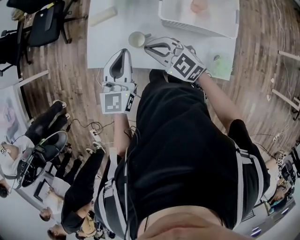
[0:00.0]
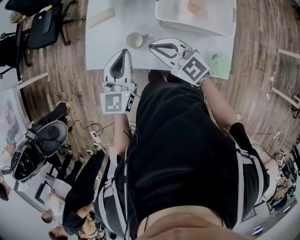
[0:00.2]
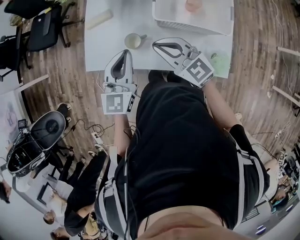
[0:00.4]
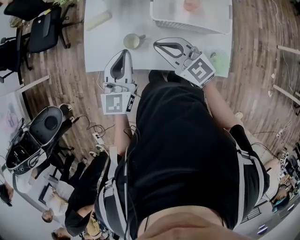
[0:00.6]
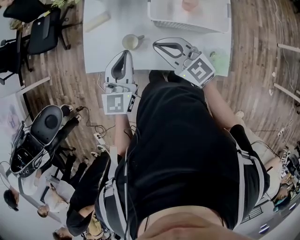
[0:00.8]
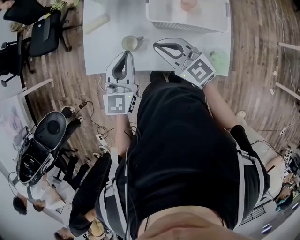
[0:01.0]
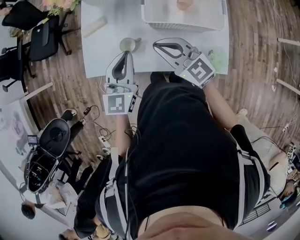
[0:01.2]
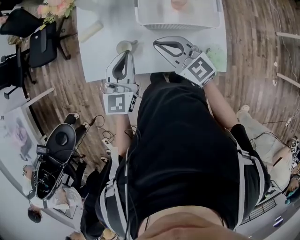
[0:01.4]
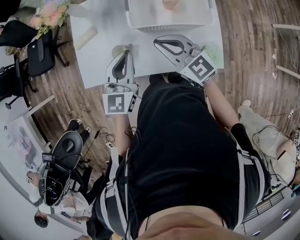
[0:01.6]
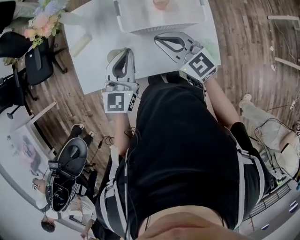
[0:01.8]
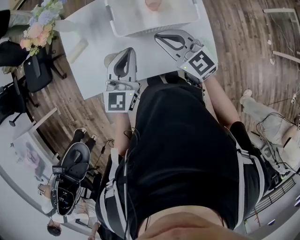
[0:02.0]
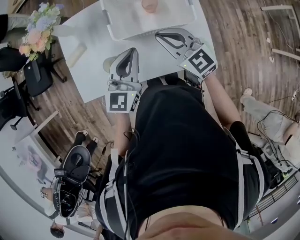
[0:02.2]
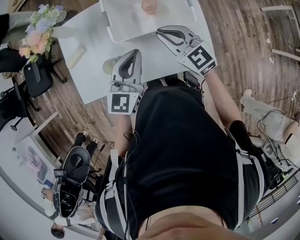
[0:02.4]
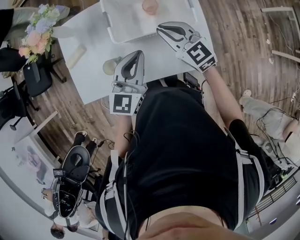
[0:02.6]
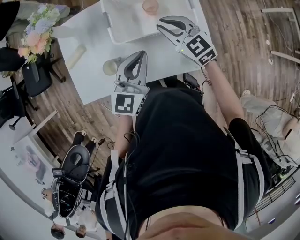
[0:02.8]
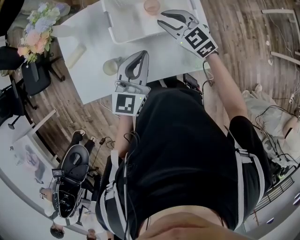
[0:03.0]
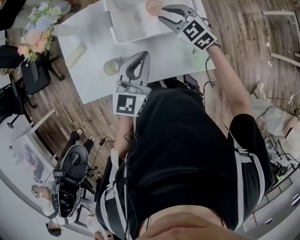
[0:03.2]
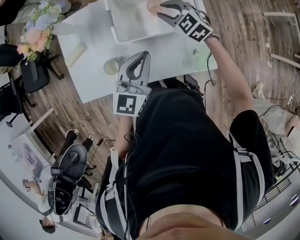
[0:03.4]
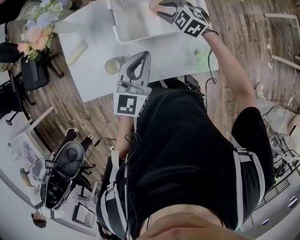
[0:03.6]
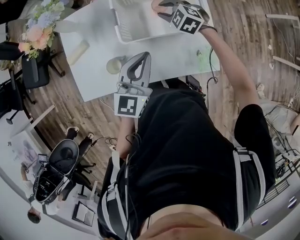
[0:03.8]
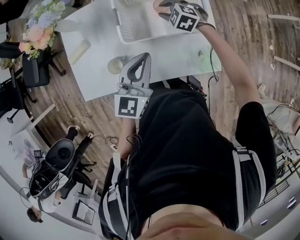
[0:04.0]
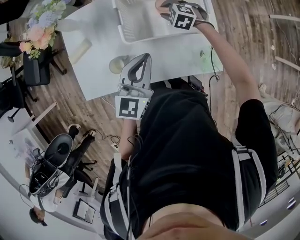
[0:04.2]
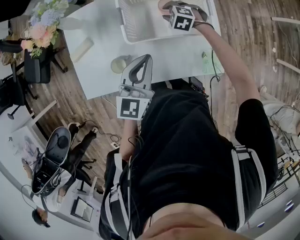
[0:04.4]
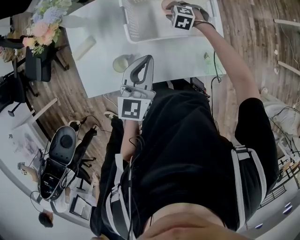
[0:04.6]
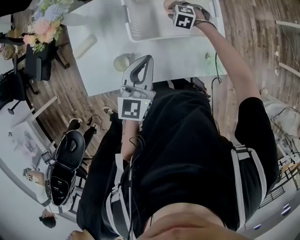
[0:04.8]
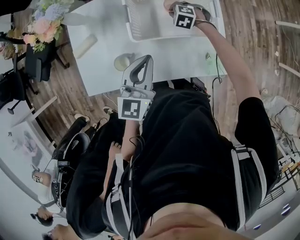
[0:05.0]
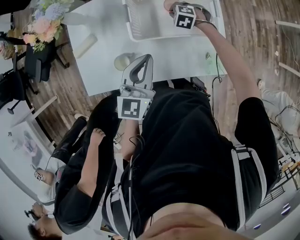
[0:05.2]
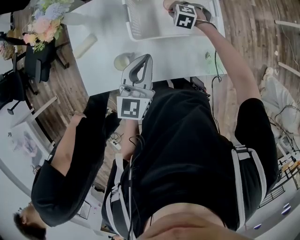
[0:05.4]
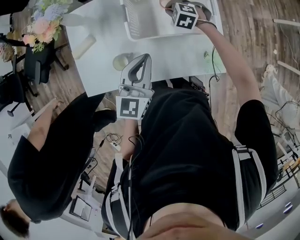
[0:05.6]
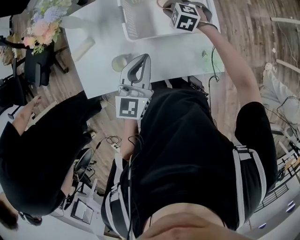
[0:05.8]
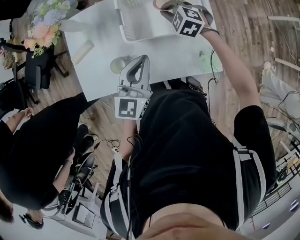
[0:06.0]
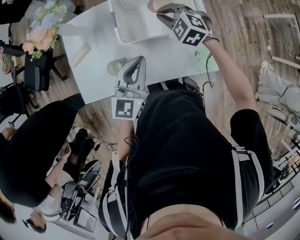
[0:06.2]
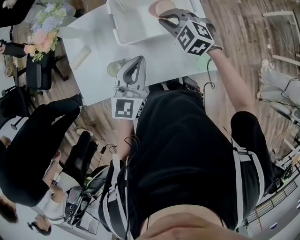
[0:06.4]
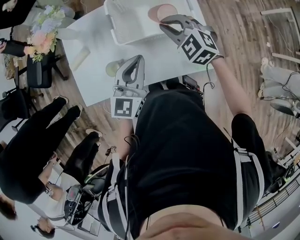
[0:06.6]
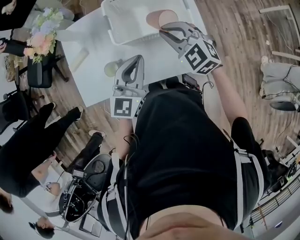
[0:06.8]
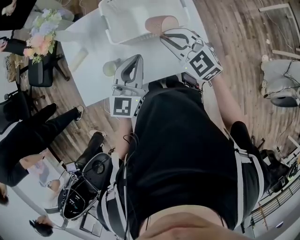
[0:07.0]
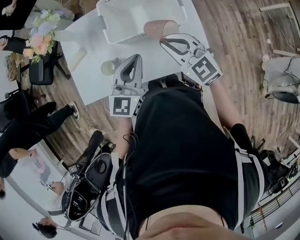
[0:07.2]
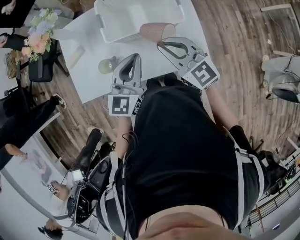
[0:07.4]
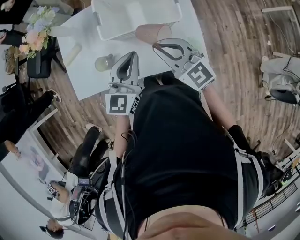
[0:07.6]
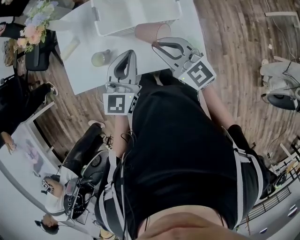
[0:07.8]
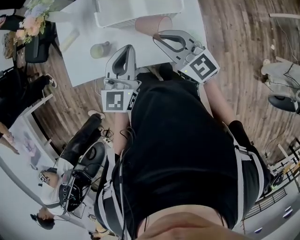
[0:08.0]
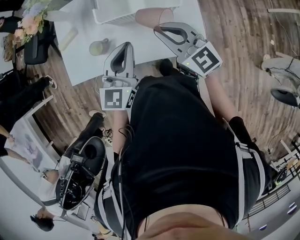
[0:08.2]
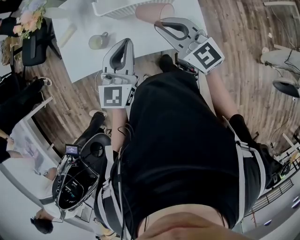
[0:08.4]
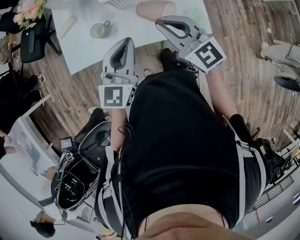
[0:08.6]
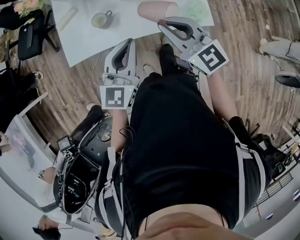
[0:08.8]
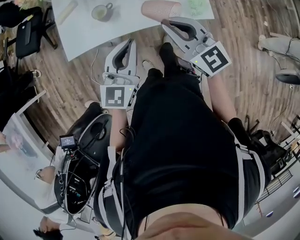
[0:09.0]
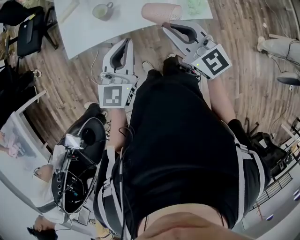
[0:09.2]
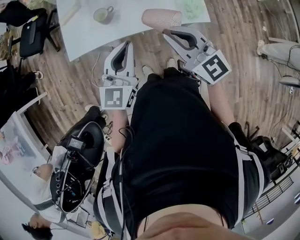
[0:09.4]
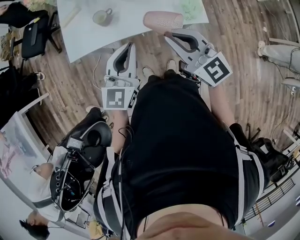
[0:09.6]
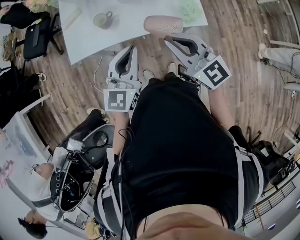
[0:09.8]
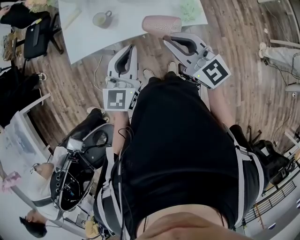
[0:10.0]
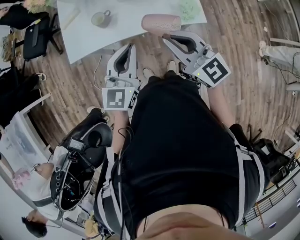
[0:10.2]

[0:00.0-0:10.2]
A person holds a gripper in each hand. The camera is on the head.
0:00.0 to 0:01.4: The grippers both shift to the right by roughly 10 cm. The right gripper swivels roughly 20 degrees.
0:01.4 to 0:03.0: The left gripper is displaced to the right by approximately 15 cm. The right gripper shifts roughly 20 cm to the right and forward, and swivels some 20 degrees.
0:03.0 to 0:04.4: The right gripper moves downward and forward, approximately 20 cm, and points its fingers approximately 30 degrees further downward.
0:04.4 to 0:05.8: The right gripper shifts approximately 5 cm upward, and closes its fingers.
0:05.8 to 0:07.2: The left gripper heads to the right and backward, covering approximately 10 cm, while the right gripper is displaced backward and upward by approximately 25 cm, and angles its fingers upward, by roughly 40 degrees.
0:07.2 to 0:08.8: The grippers both shift backward and to the left by about 20 cm.
0:08.8 to 0:10.2: The right gripper moves backward, about 10 cm, while the left gripper moves backward, some 5 cm.

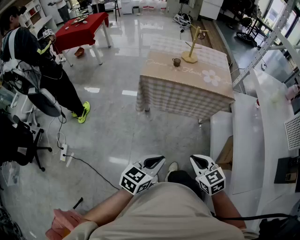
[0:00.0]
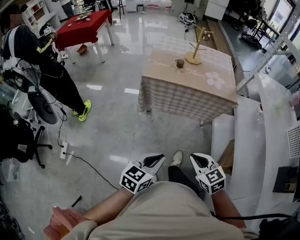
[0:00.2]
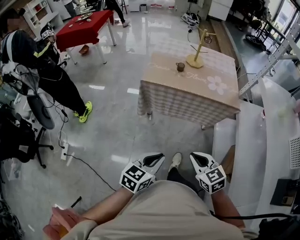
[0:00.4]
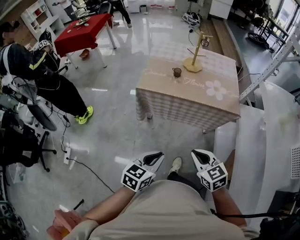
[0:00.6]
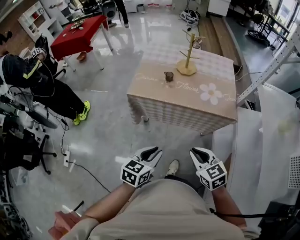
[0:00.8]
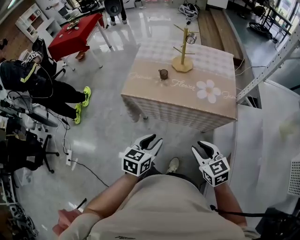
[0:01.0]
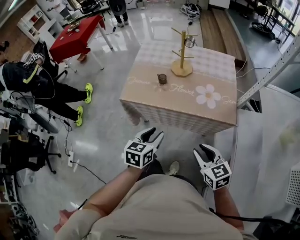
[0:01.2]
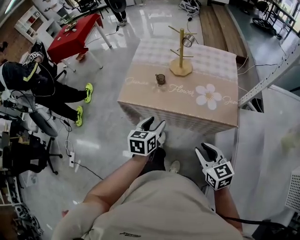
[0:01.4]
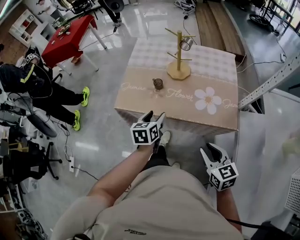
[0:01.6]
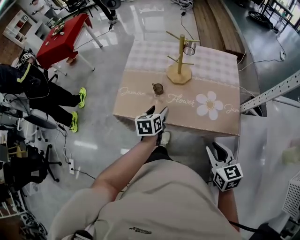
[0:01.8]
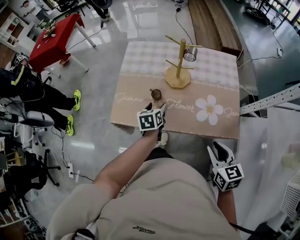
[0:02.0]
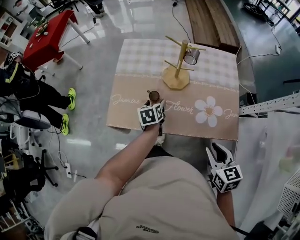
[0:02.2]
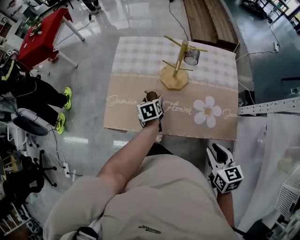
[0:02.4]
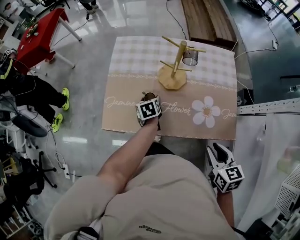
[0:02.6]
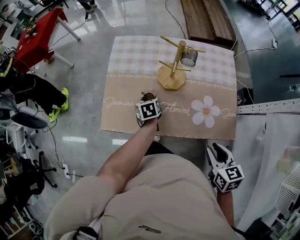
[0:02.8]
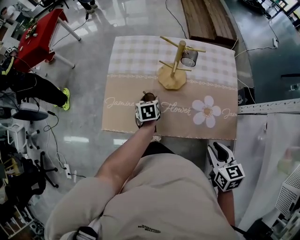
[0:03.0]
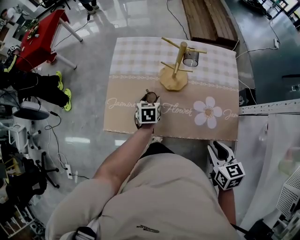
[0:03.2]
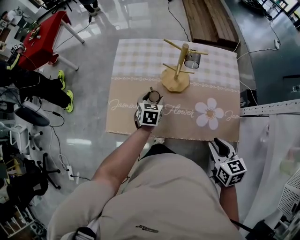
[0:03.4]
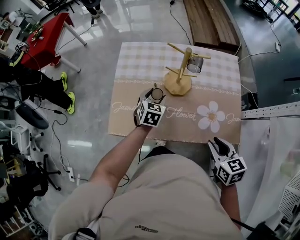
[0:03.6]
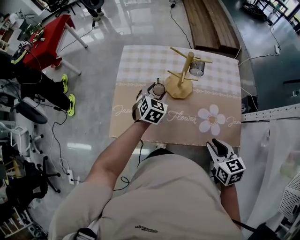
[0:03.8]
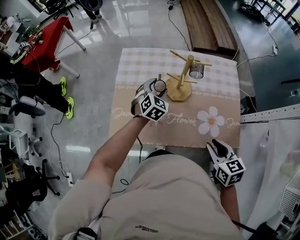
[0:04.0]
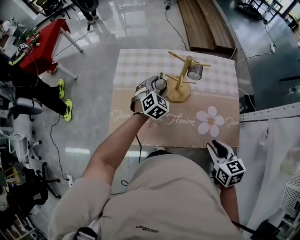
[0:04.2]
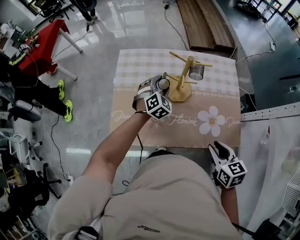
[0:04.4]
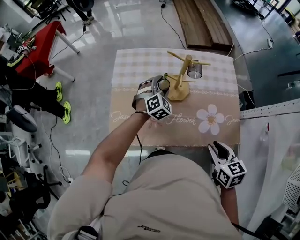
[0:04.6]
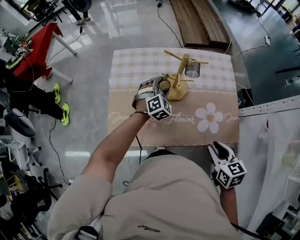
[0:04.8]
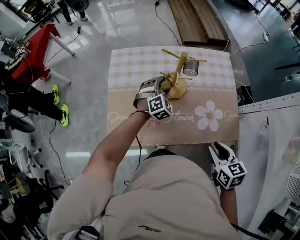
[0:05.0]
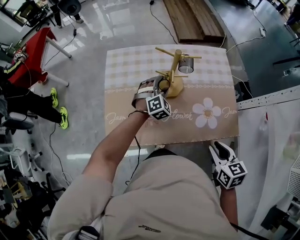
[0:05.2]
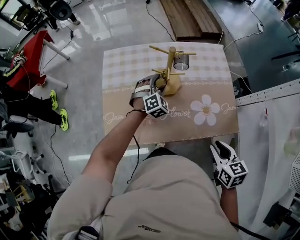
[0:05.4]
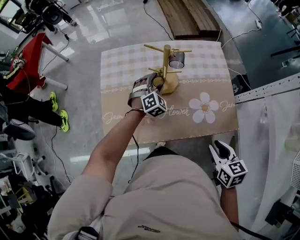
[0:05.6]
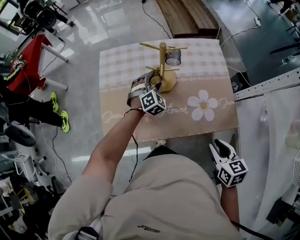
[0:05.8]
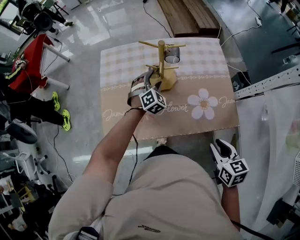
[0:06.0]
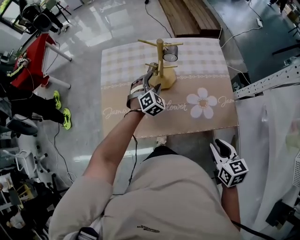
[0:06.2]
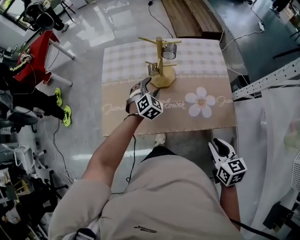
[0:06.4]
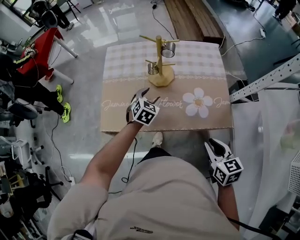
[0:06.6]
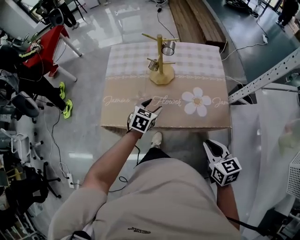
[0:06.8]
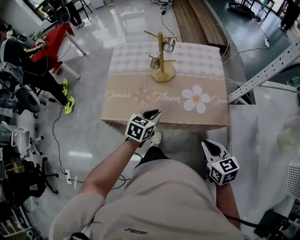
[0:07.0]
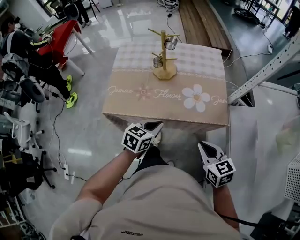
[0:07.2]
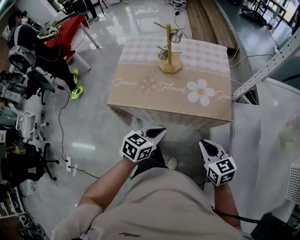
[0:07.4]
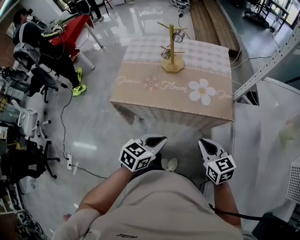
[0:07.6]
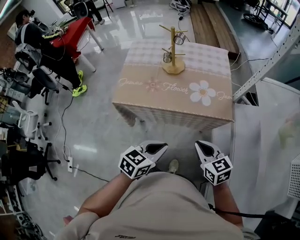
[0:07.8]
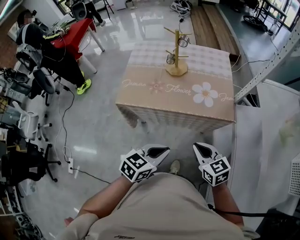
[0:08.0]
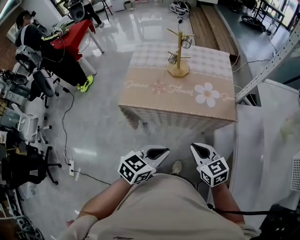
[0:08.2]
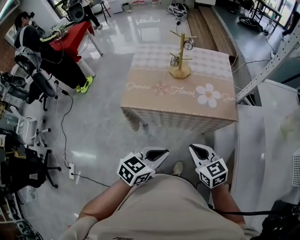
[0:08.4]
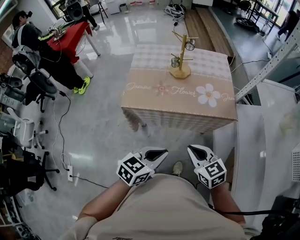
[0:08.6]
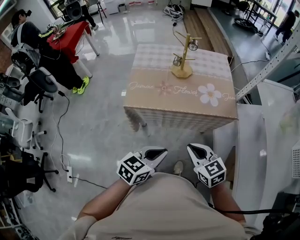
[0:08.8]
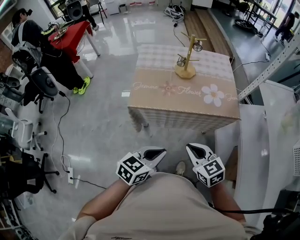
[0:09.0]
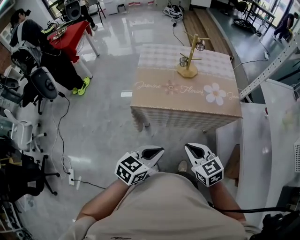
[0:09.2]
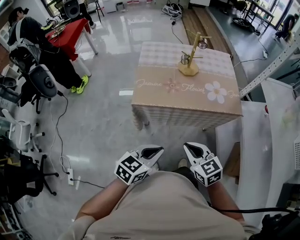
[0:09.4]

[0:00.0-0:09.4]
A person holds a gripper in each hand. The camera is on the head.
0:00.0 to 0:01.6: Both grippers are carried forward, some 50 cm. The left gripper rotates some 30 degrees, and opens, while the right gripper opens up.
0:01.6 to 0:03.2: The right gripper heads forward, covering about 15 cm. Meanwhile the left gripper goes about 25 cm forward and downward.
0:03.2 to 0:04.8: The left gripper moves forward, to the right and upward, about 15 cm, and rolls clockwise, seen from behind, by roughly 70 degrees.
0:04.8 to 0:06.2: The right gripper heads backward, covering roughly 5 cm.
0:06.2 to 0:07.8: The right gripper is displaced backward by approximately 15 cm, changes its angle by about 30 degrees, and closes up, while the left gripper heads backward, covering some 50 cm, rolls counterclockwise, seen from behind, by approximately 50 degrees, and closes.
0:07.8 to 0:09.4: Both grippers travel together to the left, roughly 20 cm.

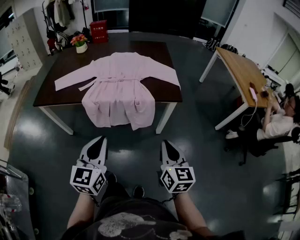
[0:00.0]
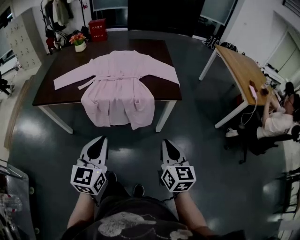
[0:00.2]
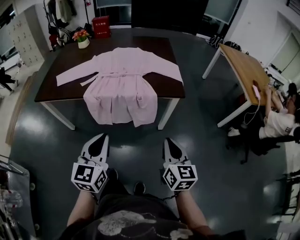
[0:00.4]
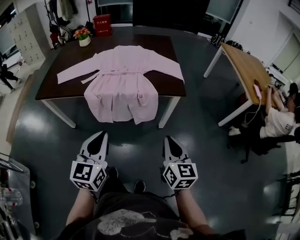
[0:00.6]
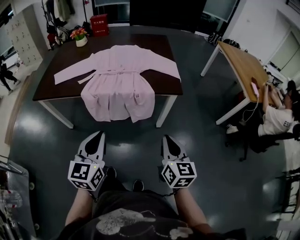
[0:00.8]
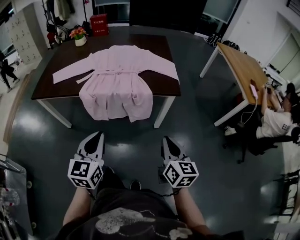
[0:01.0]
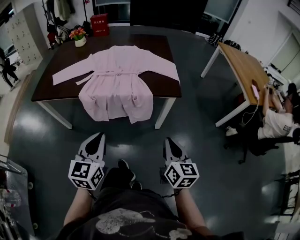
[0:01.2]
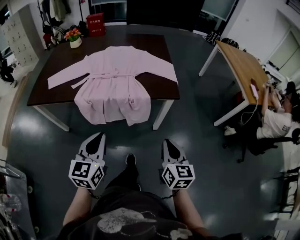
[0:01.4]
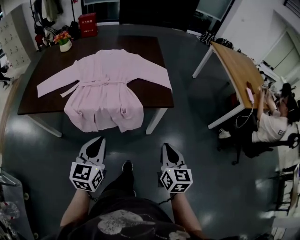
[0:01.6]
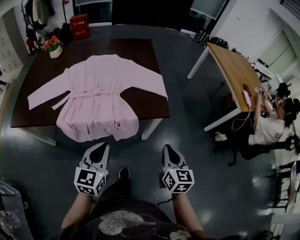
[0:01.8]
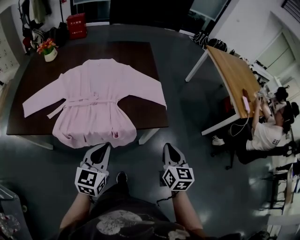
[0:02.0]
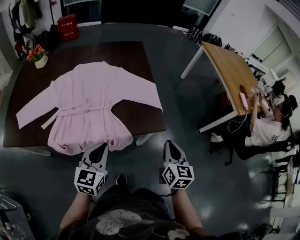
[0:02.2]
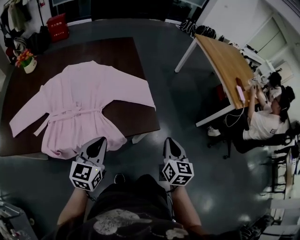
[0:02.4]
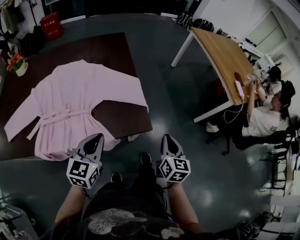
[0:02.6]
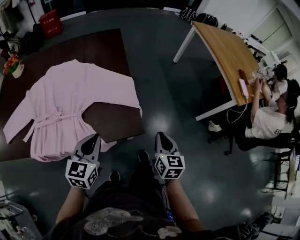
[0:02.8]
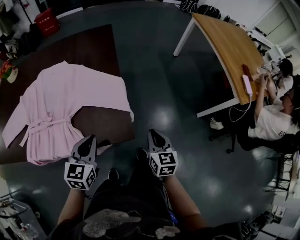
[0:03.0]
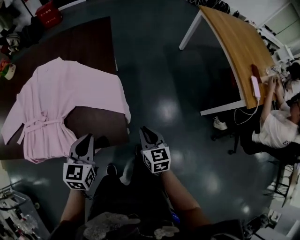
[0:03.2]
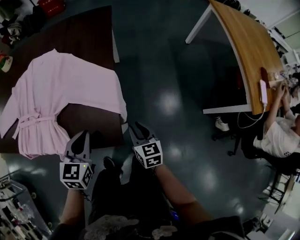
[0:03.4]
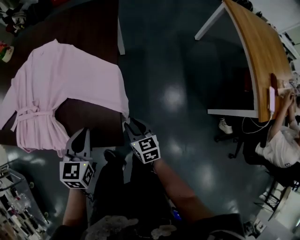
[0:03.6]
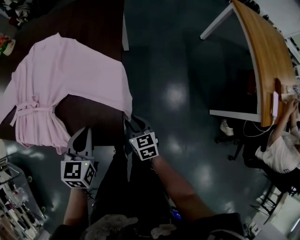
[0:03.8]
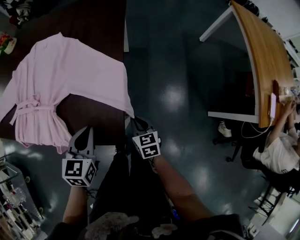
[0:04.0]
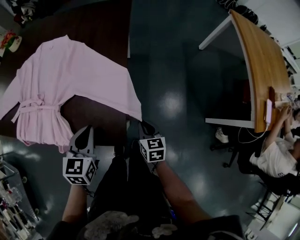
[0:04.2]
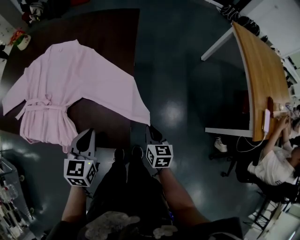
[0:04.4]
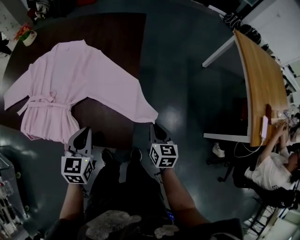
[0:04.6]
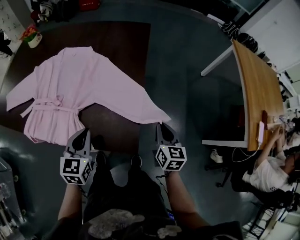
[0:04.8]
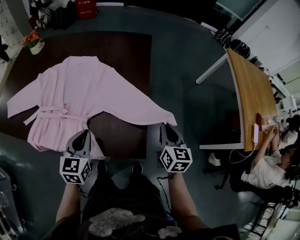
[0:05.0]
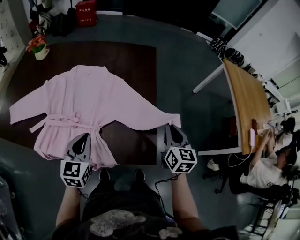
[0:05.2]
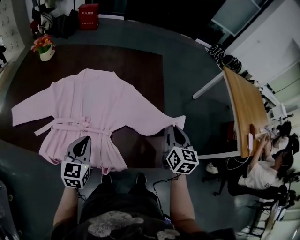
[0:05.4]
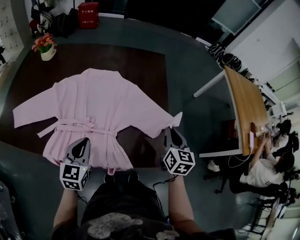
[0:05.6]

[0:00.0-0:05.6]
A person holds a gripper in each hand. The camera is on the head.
0:00.0 to 0:01.4: The left gripper moves forward, approximately 5 cm, while the right gripper ends up approximately 5 cm from where it was.
0:01.4 to 0:02.8: Both grippers move forward, some 35 cm.
0:02.8 to 0:04.2: The left gripper changes place by about 15 cm, and turns by about 20 degrees. Meanwhile the right gripper heads downward, covering approximately 15 cm, and changes its angle by about 30 degrees.
0:04.2 to 0:05.6: The right gripper goes approximately 30 cm upward and to the left, and swivels about 30 degrees, while the left gripper goes about 30 cm to the left.
